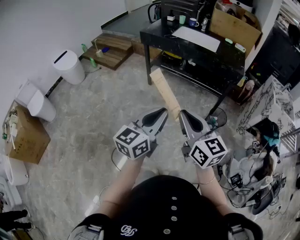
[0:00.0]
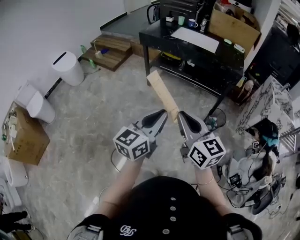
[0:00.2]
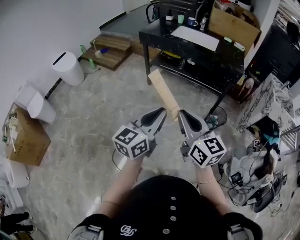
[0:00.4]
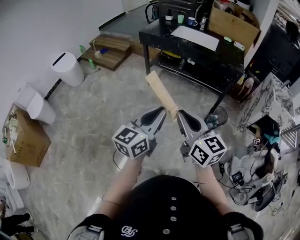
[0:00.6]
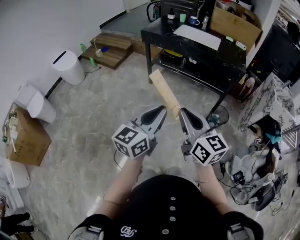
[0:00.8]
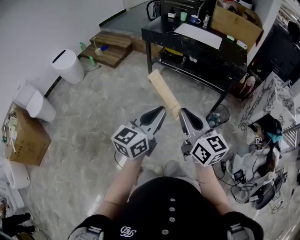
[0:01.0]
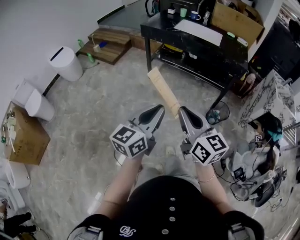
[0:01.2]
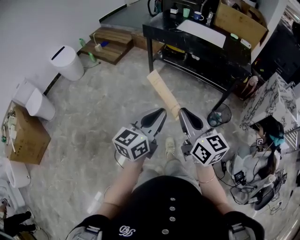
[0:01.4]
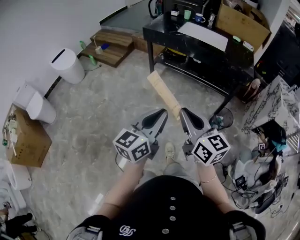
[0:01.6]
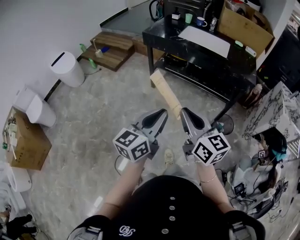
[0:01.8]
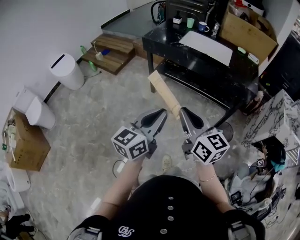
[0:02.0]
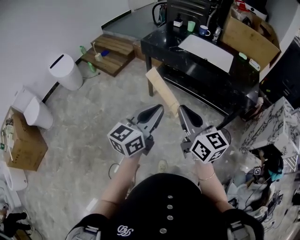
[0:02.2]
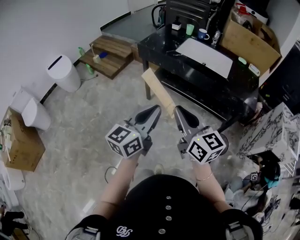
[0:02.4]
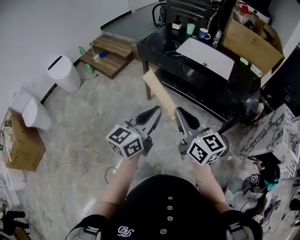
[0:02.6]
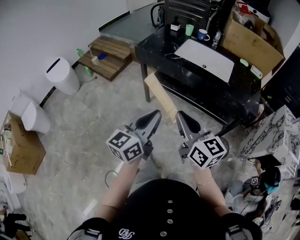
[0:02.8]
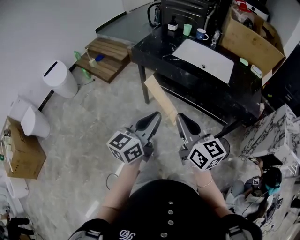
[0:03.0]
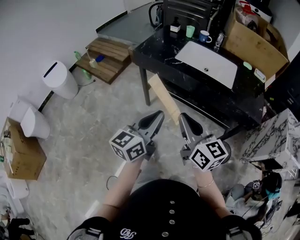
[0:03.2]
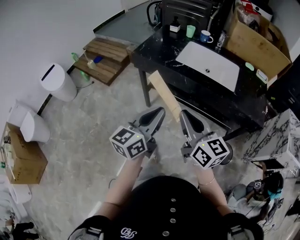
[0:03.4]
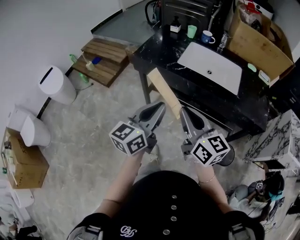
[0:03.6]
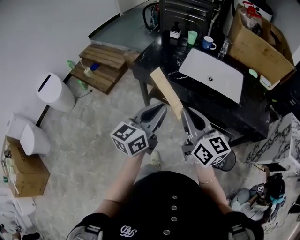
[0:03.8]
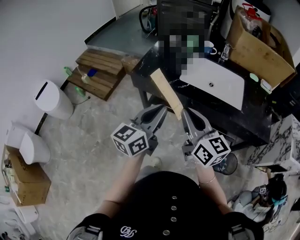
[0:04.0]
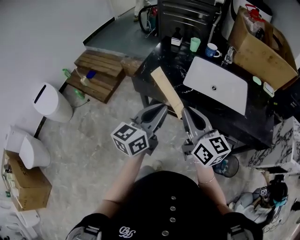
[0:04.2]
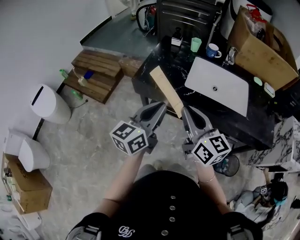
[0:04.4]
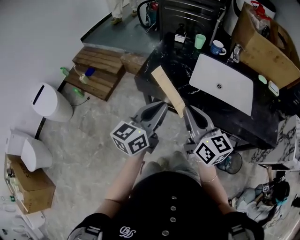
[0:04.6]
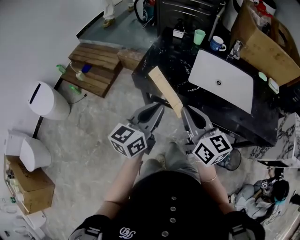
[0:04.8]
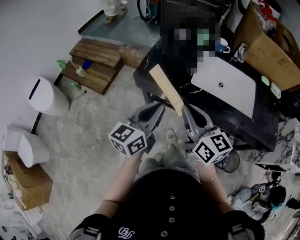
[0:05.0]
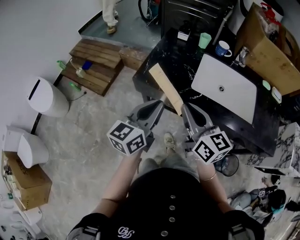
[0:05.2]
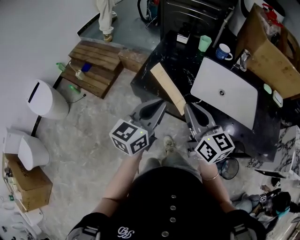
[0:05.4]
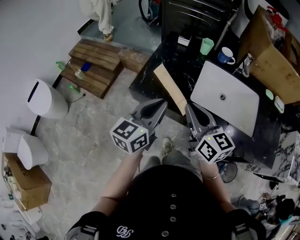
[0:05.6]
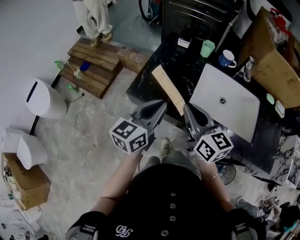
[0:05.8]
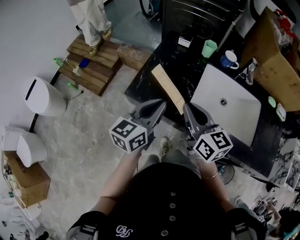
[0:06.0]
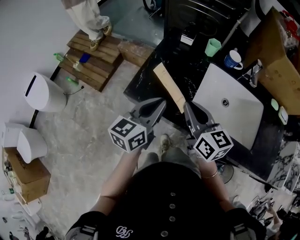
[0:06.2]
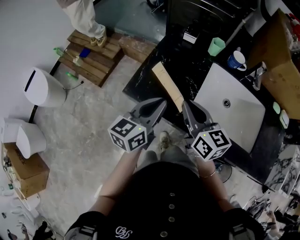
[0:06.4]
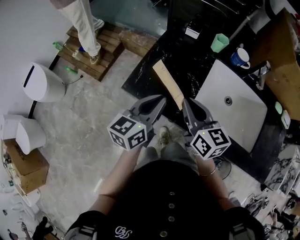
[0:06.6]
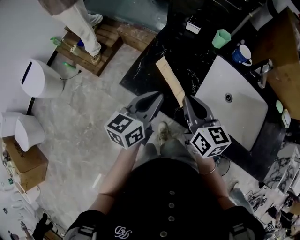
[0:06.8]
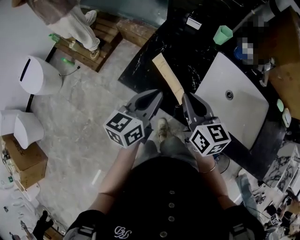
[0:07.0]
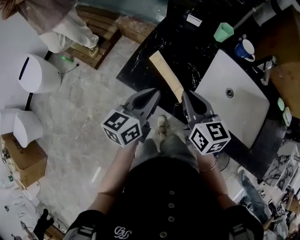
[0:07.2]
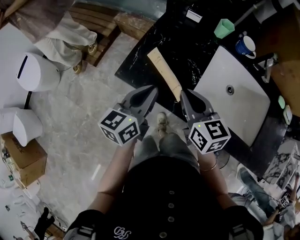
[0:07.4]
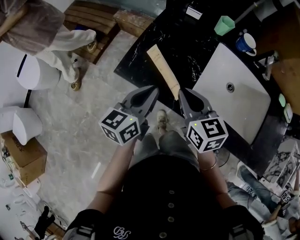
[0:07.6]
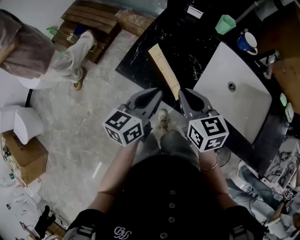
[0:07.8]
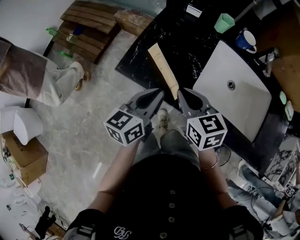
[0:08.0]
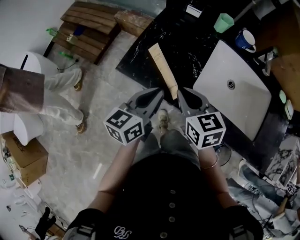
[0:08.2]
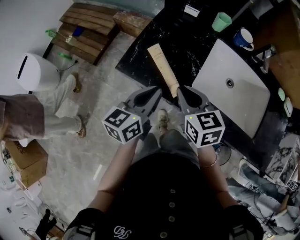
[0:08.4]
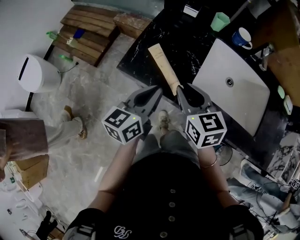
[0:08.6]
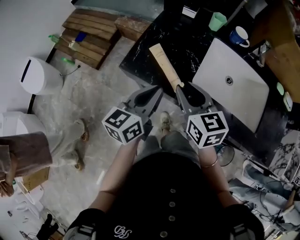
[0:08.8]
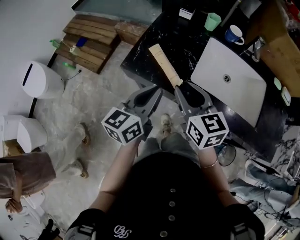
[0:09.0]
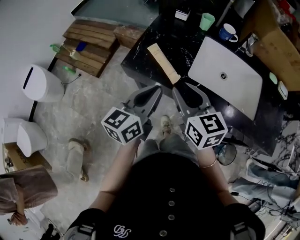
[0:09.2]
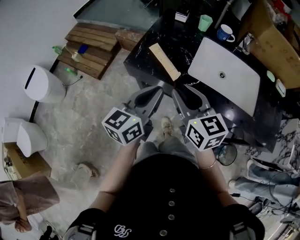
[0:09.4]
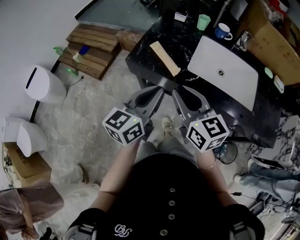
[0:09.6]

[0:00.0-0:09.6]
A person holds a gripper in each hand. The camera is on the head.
0:00.0 to 0:01.6: The right gripper ends up about 5 cm from where it was; the left gripper changes place by about 5 cm.
0:01.6 to 0:03.2: Both grippers travel together forward, some 25 cm.
0:03.2 to 0:04.8: Both grippers move forward and to the left, some 25 cm.
0:04.8 to 0:06.4: The grippers both shift forward by about 15 cm.
0:06.4 to 0:08.0: The right gripper is displaced downward by roughly 5 cm, and changes its angle by about 20 degrees, while the left gripper shifts by roughly 5 cm.
0:08.0 to 0:09.6: The two grippers go approximately 15 cm backward and upward. The right gripper swivels about 20 degrees.

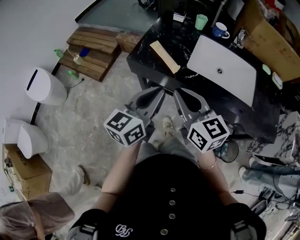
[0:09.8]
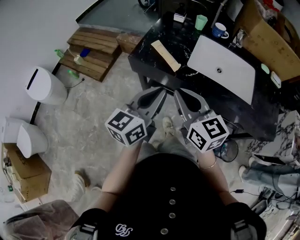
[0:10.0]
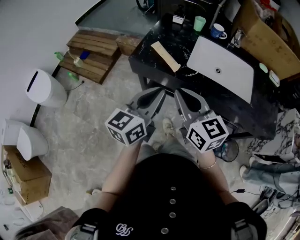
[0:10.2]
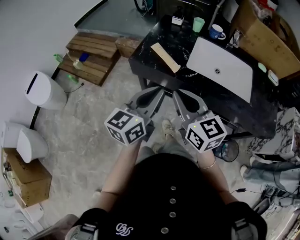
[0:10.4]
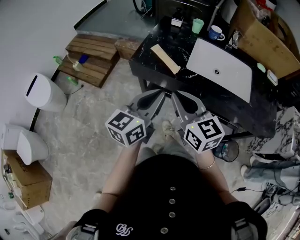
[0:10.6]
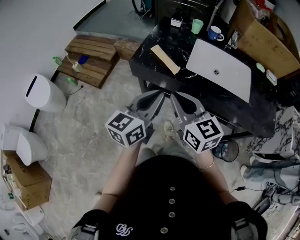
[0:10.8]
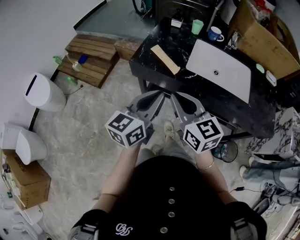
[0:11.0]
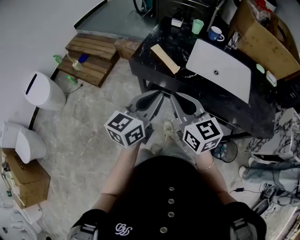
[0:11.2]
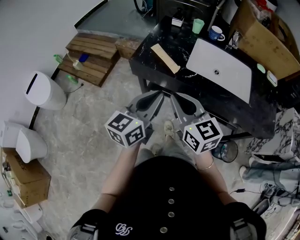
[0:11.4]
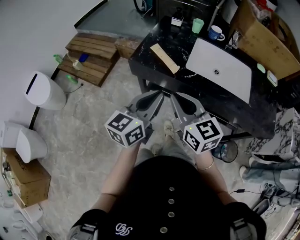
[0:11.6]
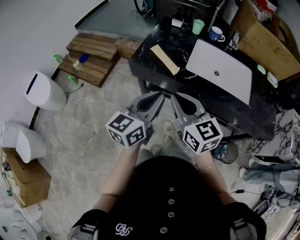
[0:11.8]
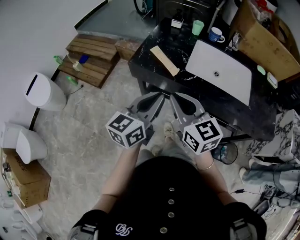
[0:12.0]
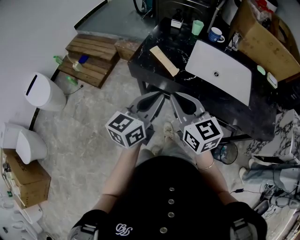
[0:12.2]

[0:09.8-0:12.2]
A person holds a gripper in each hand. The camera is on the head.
0:09.8 to 0:11.0: The grippers make only small movements.
0:11.0 to 0:12.2: Both grippers stay about where they are.

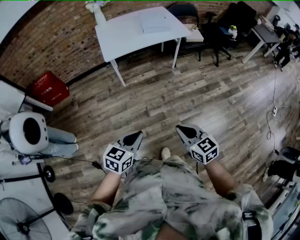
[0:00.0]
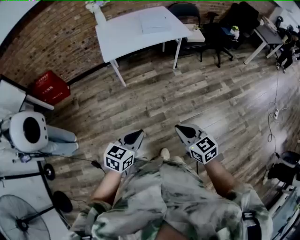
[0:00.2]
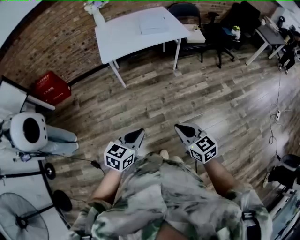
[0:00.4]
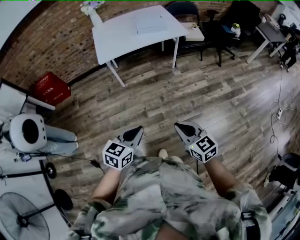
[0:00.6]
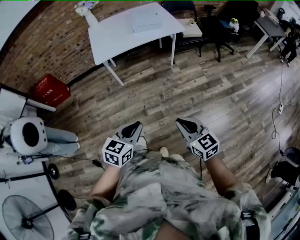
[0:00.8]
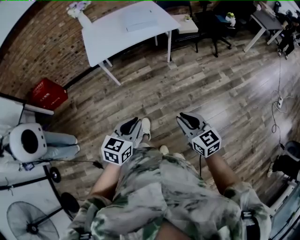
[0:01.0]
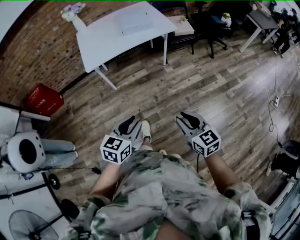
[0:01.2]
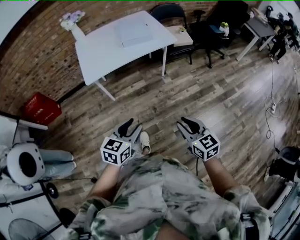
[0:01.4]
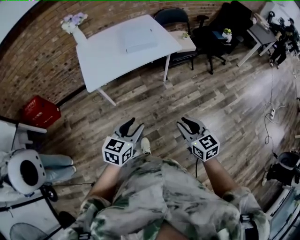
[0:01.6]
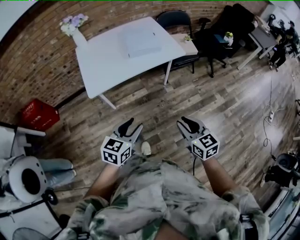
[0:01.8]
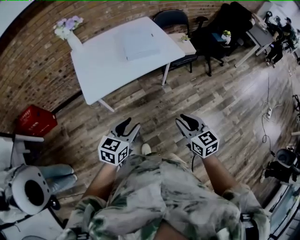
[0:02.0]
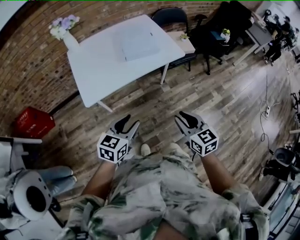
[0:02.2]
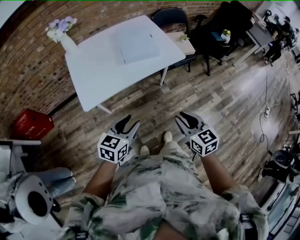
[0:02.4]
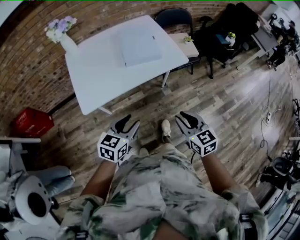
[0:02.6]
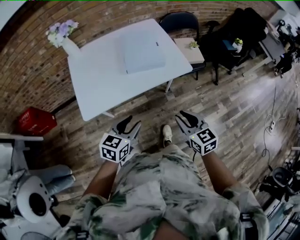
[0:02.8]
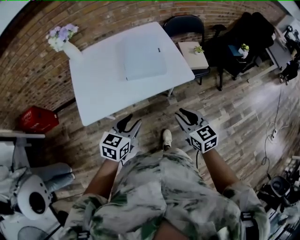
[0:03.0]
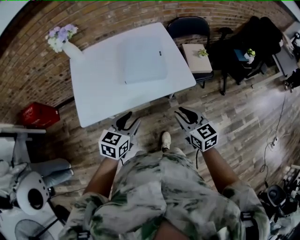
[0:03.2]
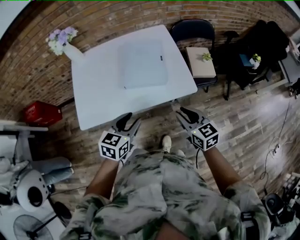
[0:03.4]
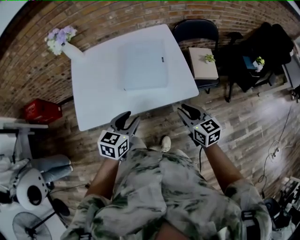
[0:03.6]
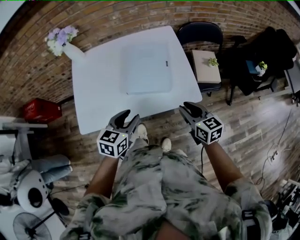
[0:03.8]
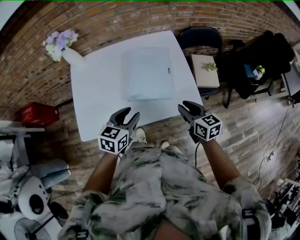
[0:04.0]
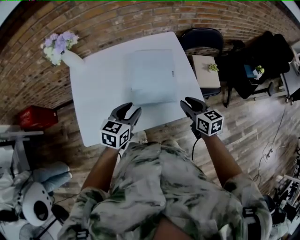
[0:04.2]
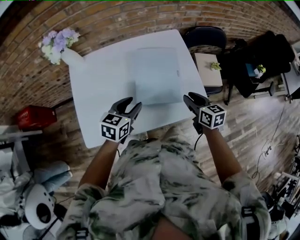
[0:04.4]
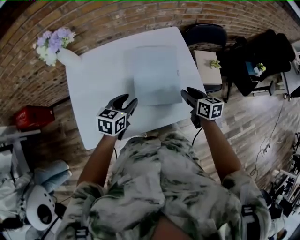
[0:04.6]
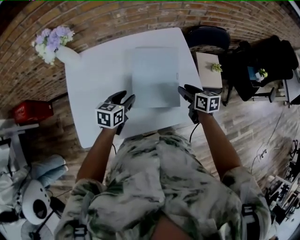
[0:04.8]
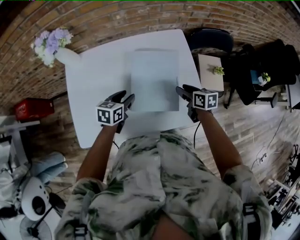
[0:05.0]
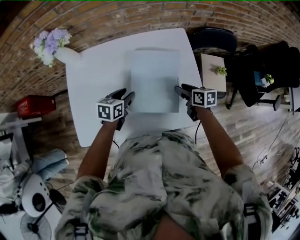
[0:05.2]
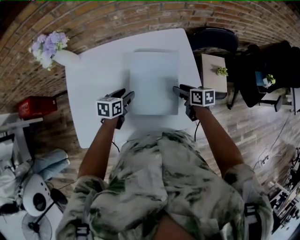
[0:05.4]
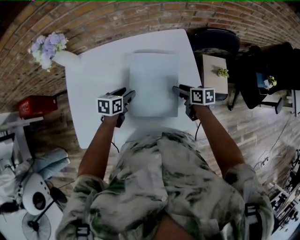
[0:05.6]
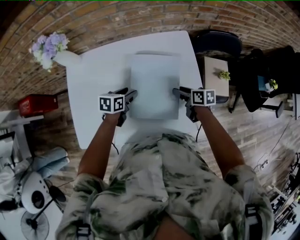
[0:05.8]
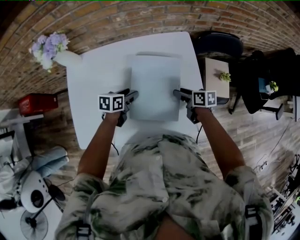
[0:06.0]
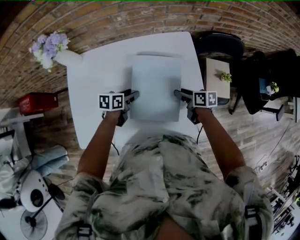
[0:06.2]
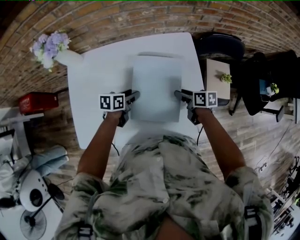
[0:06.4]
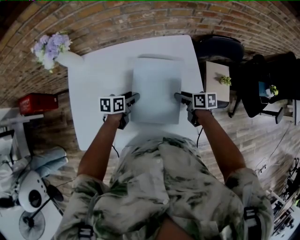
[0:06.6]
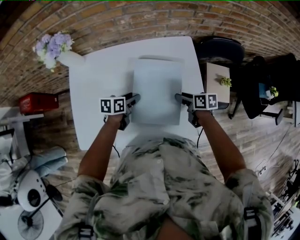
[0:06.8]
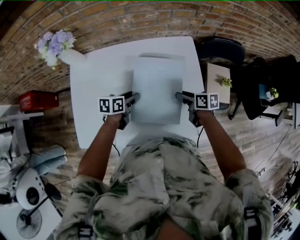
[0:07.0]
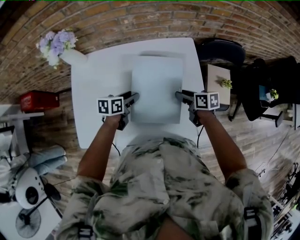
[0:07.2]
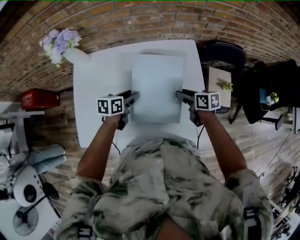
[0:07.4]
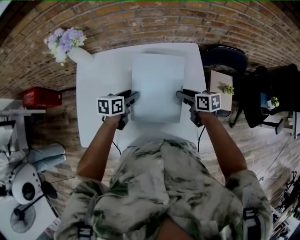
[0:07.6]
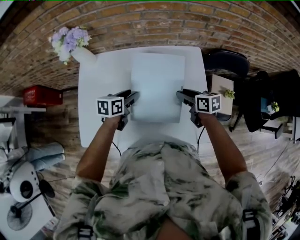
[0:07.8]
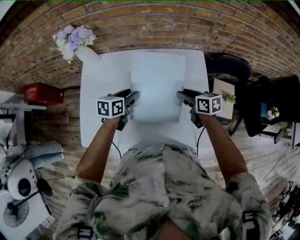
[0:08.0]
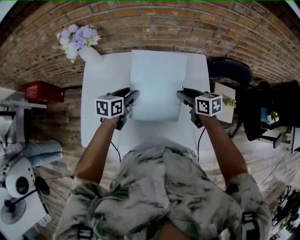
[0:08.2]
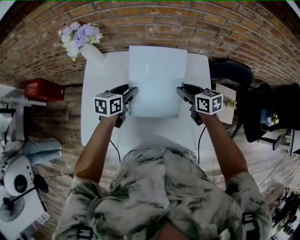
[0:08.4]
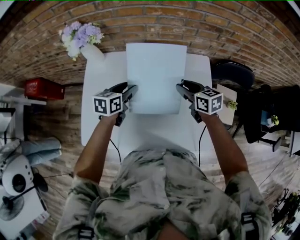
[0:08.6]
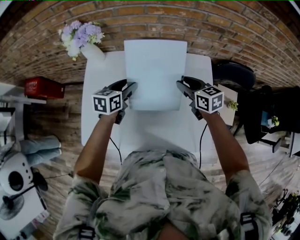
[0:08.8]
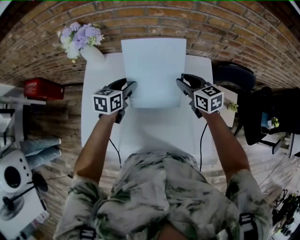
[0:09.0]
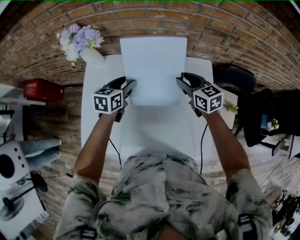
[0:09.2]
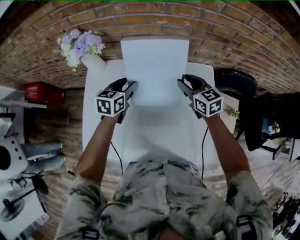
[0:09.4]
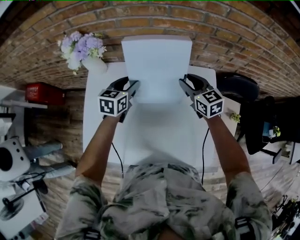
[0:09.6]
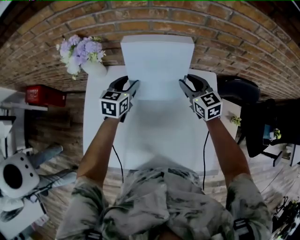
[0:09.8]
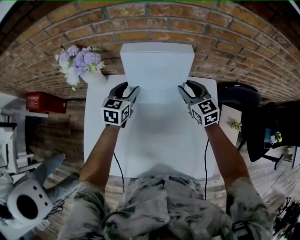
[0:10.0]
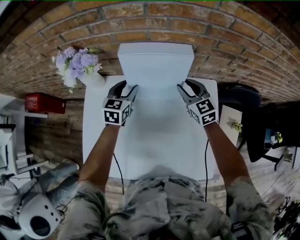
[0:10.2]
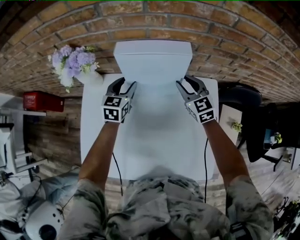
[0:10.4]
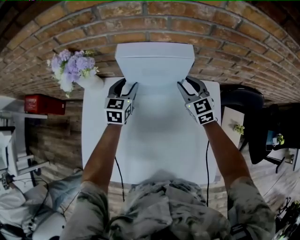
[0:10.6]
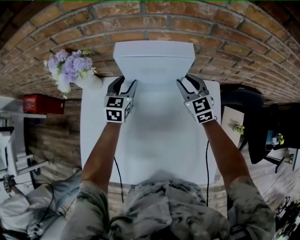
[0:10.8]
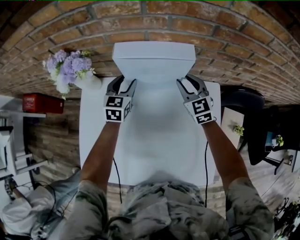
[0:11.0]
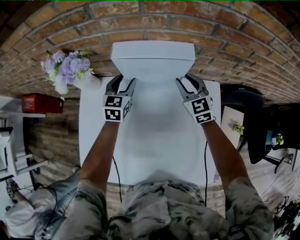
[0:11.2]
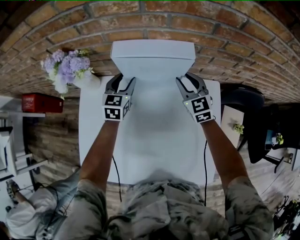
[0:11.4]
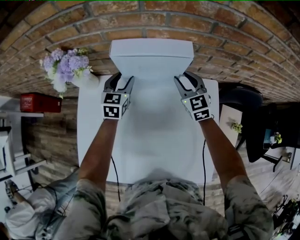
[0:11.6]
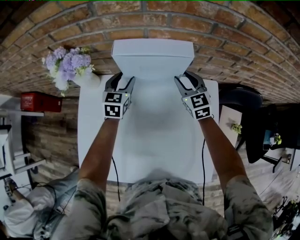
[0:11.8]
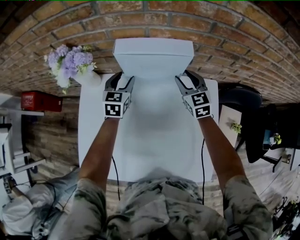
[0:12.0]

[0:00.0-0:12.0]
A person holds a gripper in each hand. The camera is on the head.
0:00.0 to 0:01.6: The right gripper moves forward and to the right, about 30 cm, and opens; the left gripper shifts roughly 30 cm forward, and opens up.
0:01.6 to 0:03.0: Both grippers travel together forward, roughly 35 cm.
0:03.0 to 0:04.4: The grippers both shift forward by roughly 30 cm.
0:04.4 to 0:06.0: Both grippers move forward and downward, roughly 20 cm. The right gripper changes its angle by about 30 degrees. Meanwhile the left gripper swivels about 30 degrees.
0:06.0 to 0:07.6: The two grippers go about 5 cm upward.
0:07.6 to 0:09.0: The left gripper heads forward, to the left and upward, covering approximately 15 cm. Meanwhile the right gripper heads forward, upward and to the left, covering approximately 15 cm, and rotates some 30 degrees.
0:09.0 to 0:10.4: The two grippers go approximately 15 cm forward. The right gripper rotates roughly 30 degrees. The left gripper turns by roughly 20 degrees.
0:10.4 to 0:12.0: The grippers make only small movements.
